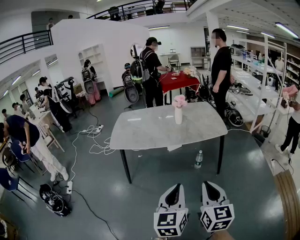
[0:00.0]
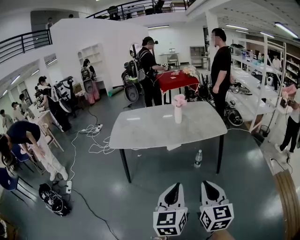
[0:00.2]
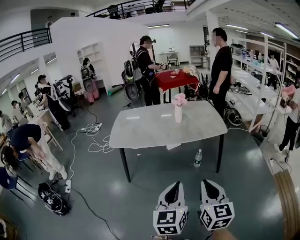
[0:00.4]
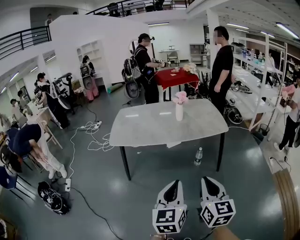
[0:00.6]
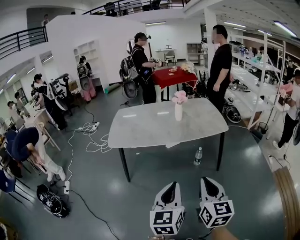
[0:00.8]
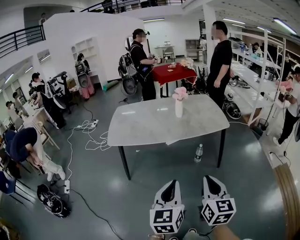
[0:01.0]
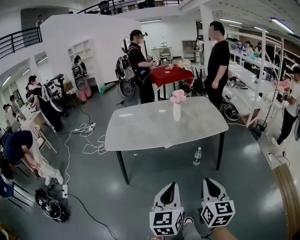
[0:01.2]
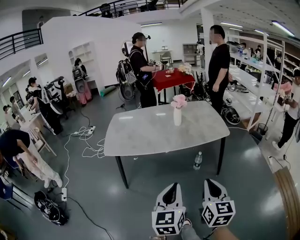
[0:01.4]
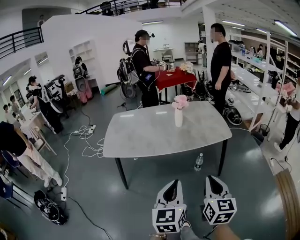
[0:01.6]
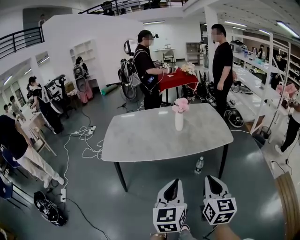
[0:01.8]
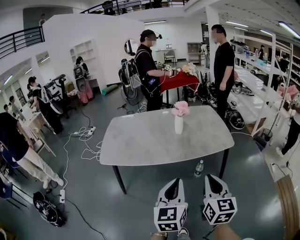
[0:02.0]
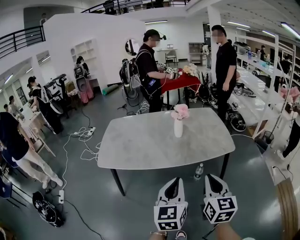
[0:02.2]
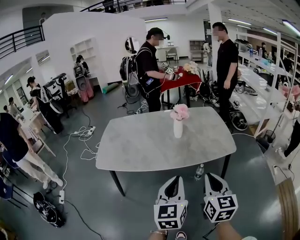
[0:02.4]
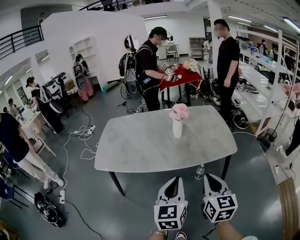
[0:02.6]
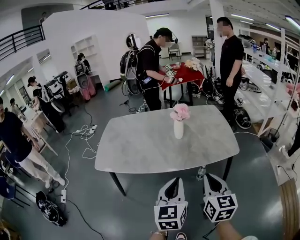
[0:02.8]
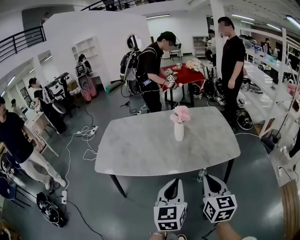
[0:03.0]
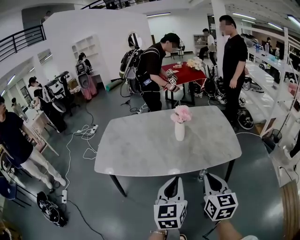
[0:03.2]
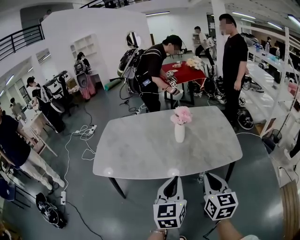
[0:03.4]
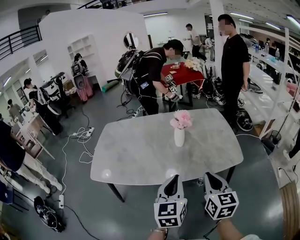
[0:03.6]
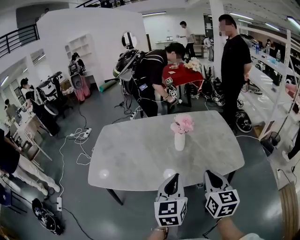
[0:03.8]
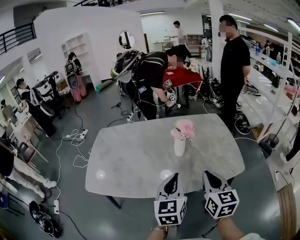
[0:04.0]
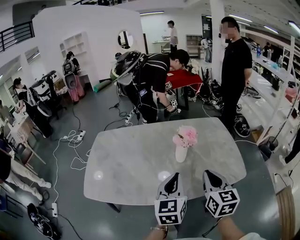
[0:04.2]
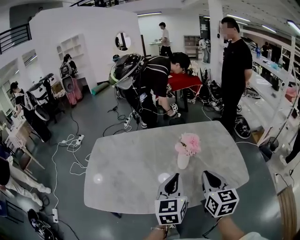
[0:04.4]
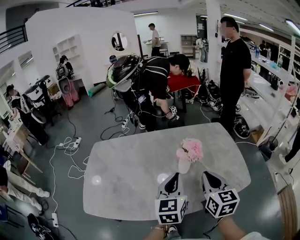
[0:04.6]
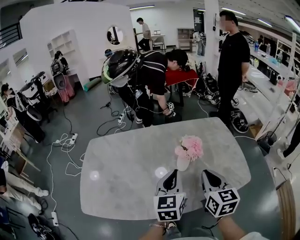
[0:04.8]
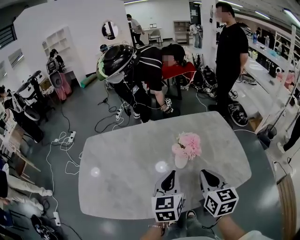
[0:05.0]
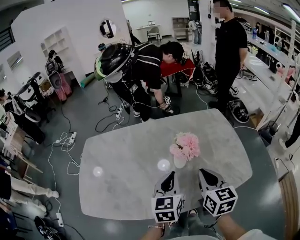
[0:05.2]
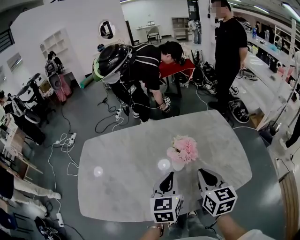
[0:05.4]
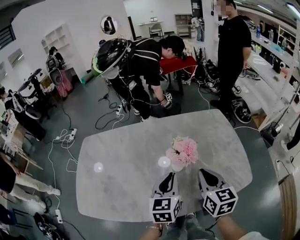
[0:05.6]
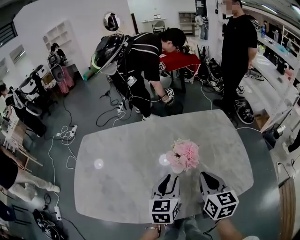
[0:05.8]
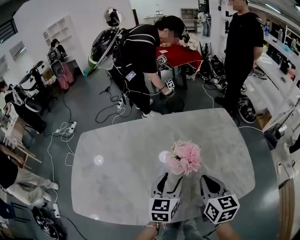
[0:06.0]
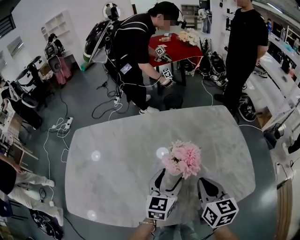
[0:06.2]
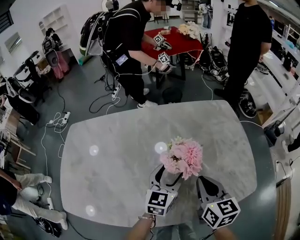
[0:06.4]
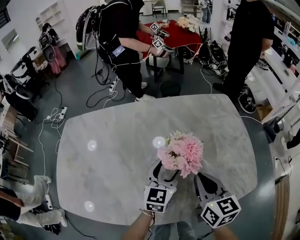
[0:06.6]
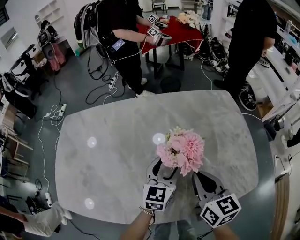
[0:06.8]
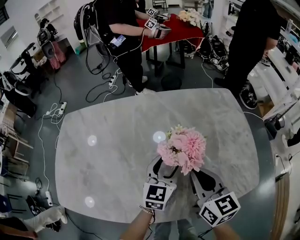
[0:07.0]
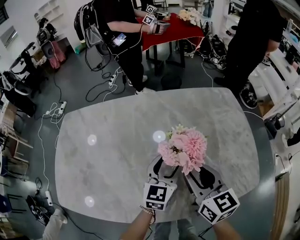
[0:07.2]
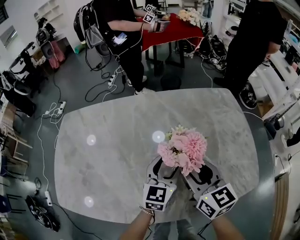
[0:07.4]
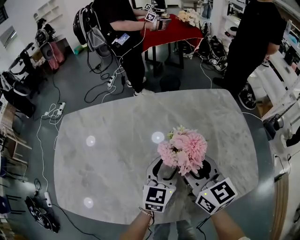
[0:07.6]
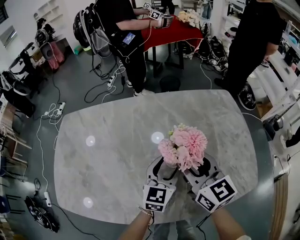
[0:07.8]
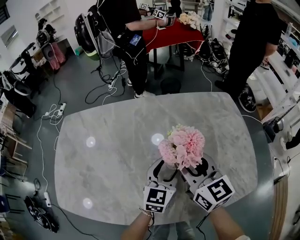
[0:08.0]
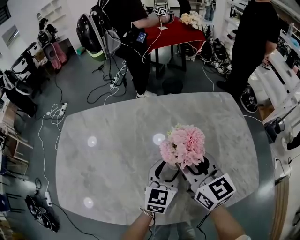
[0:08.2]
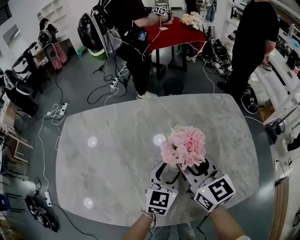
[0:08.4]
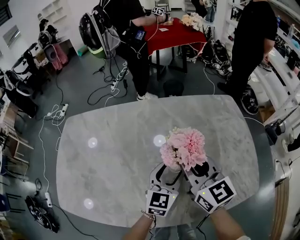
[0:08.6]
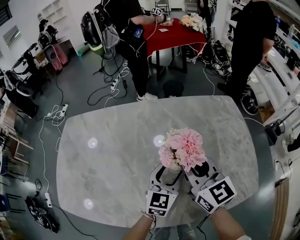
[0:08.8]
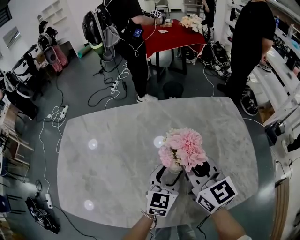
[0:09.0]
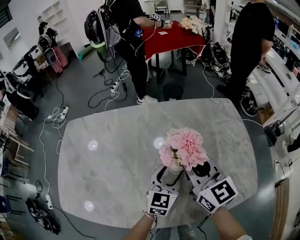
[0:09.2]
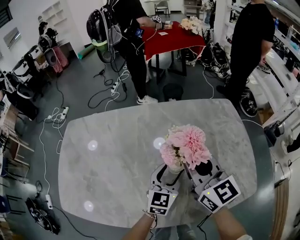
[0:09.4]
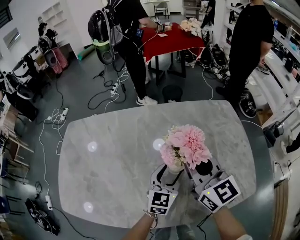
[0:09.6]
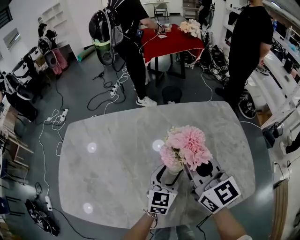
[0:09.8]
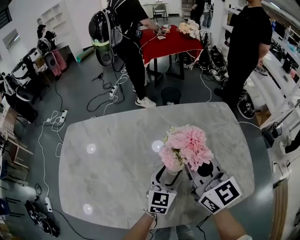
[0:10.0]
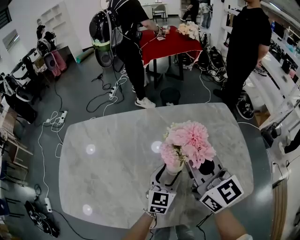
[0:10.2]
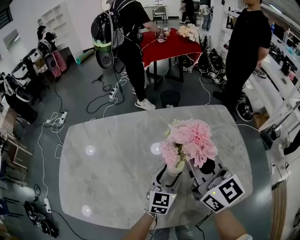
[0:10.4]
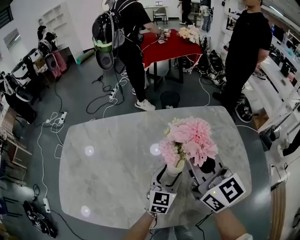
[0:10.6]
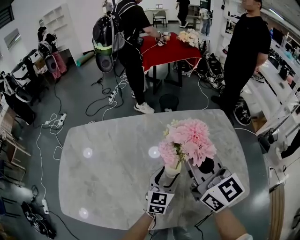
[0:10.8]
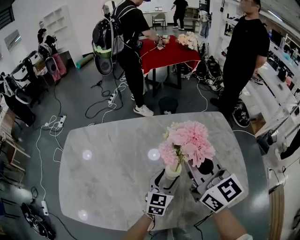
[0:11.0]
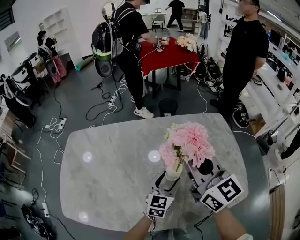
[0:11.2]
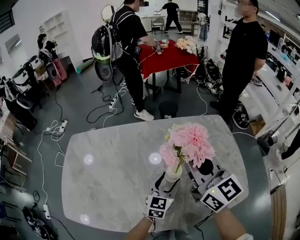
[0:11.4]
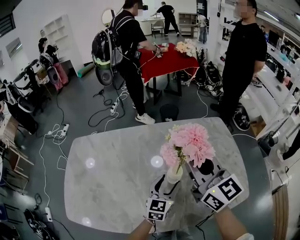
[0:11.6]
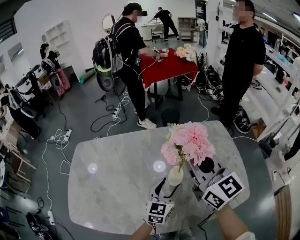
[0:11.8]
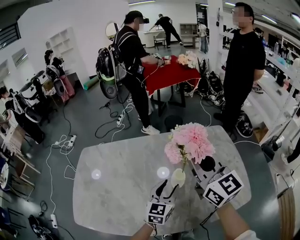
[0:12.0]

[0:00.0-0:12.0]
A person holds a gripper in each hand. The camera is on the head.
0:00.0 to 0:01.6: Both grippers travel together forward, about 15 cm.
0:01.6 to 0:03.0: The two grippers go some 20 cm forward.
0:03.0 to 0:04.4: Both grippers move forward, approximately 25 cm.
0:04.4 to 0:06.0: The right gripper heads forward and downward, covering some 15 cm. Meanwhile the left gripper is displaced downward and forward by about 20 cm, and opens its fingers.
0:06.0 to 0:07.6: The left gripper is displaced forward and downward by about 10 cm; the right gripper goes about 10 cm forward and to the left, rotates some 20 degrees, and opens.
0:07.6 to 0:09.0: The right gripper closes its fingers.
0:09.0 to 0:10.4: The right gripper goes about 10 cm upward.
0:10.4 to 0:12.0: The two grippers go some 5 cm upward.

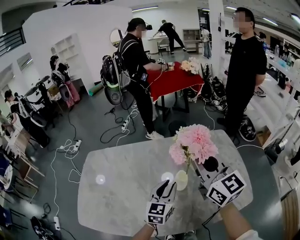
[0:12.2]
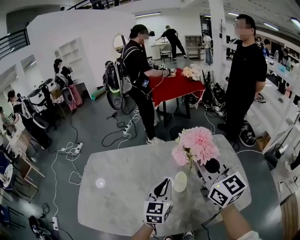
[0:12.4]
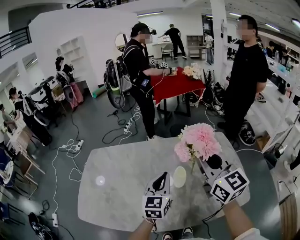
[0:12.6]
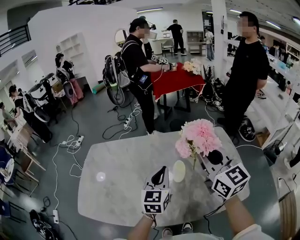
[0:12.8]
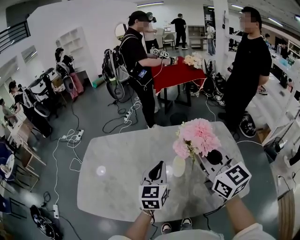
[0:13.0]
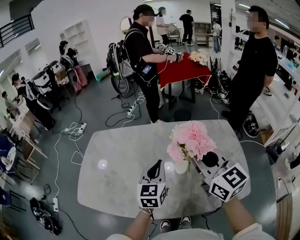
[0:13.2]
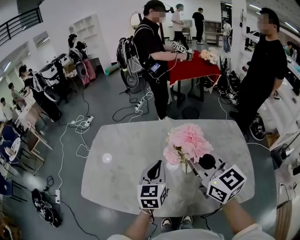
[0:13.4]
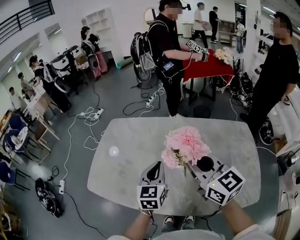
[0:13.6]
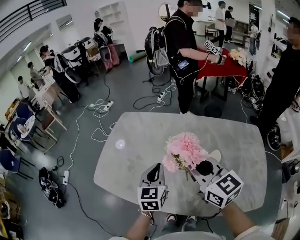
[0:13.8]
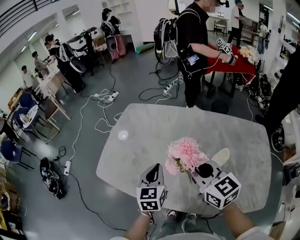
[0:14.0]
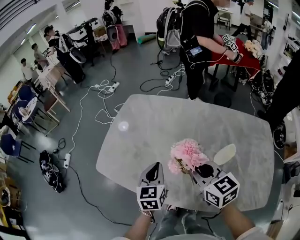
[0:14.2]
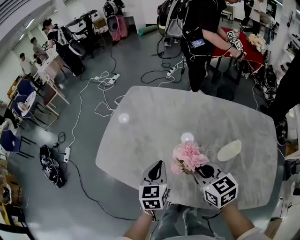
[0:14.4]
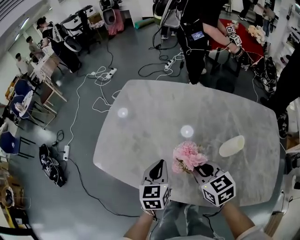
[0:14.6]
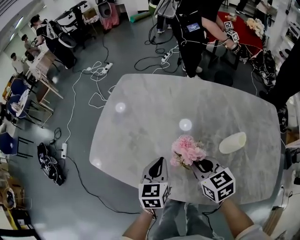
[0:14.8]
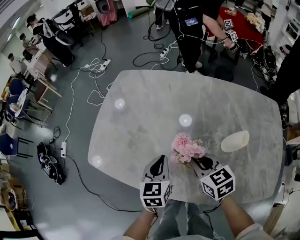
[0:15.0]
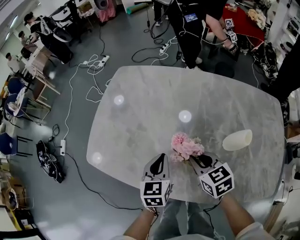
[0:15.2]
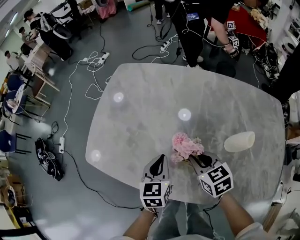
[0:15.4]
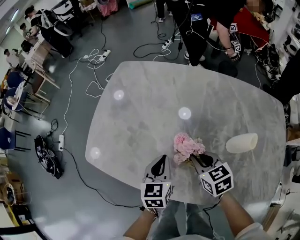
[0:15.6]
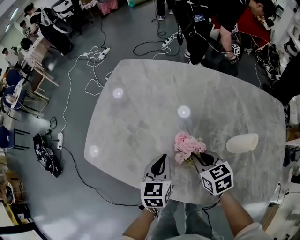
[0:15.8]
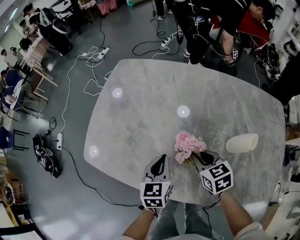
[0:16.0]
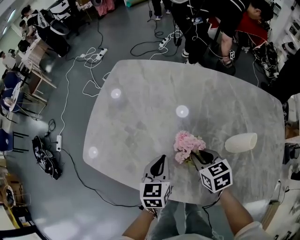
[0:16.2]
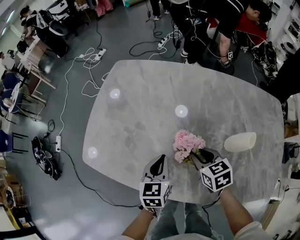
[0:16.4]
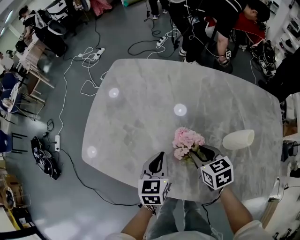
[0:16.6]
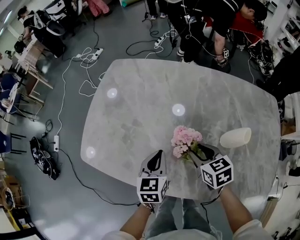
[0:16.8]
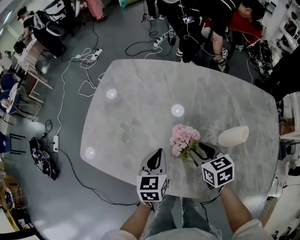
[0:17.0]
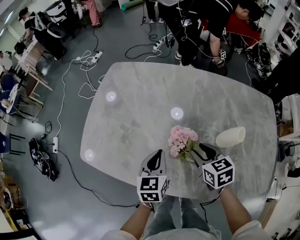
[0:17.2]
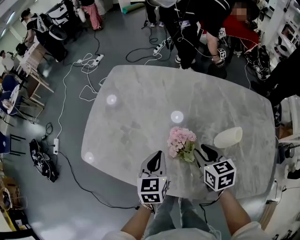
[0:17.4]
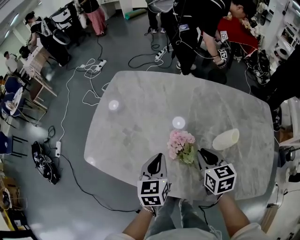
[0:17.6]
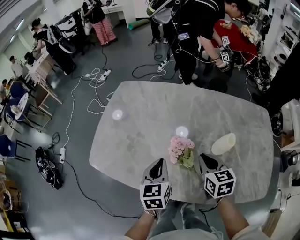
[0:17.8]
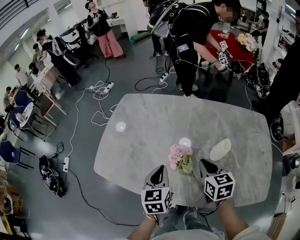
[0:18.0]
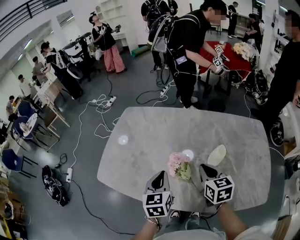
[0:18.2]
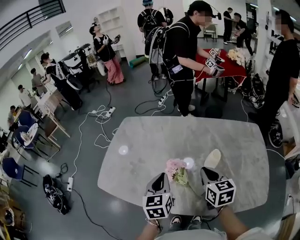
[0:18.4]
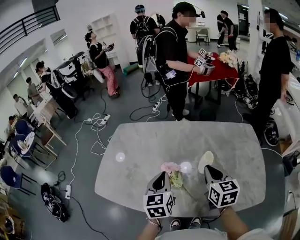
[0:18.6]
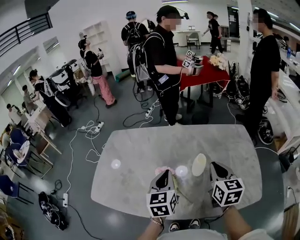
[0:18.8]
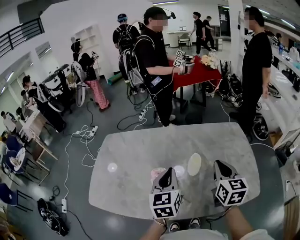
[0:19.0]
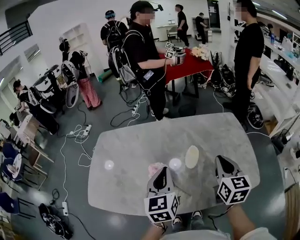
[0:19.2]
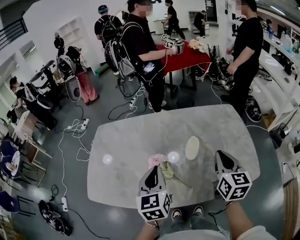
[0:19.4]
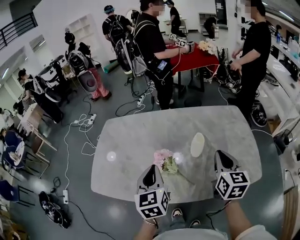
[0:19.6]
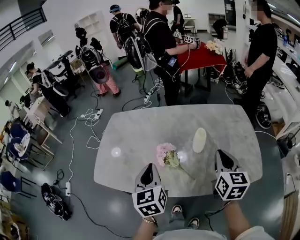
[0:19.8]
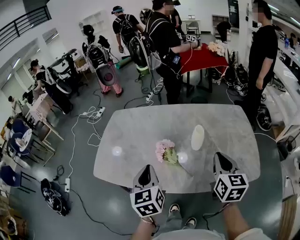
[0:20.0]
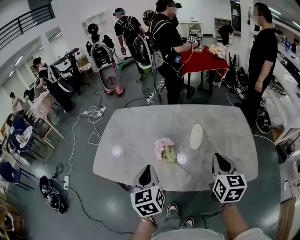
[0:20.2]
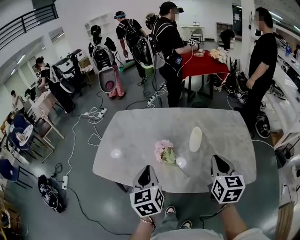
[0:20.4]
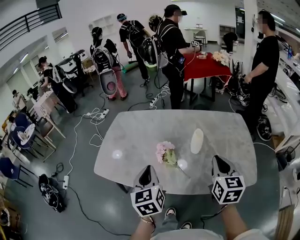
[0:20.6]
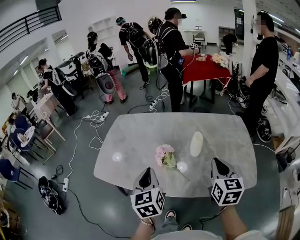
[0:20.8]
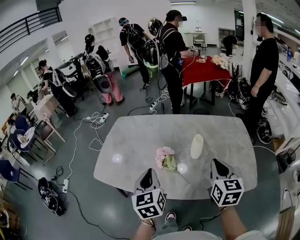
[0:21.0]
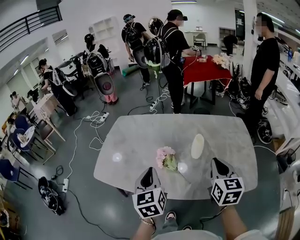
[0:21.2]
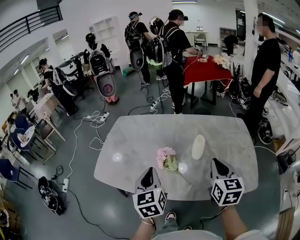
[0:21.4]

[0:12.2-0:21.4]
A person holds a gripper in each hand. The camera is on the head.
0:12.2 to 0:13.8: The right gripper moves roughly 20 cm, and swivels about 30 degrees. Meanwhile the left gripper moves about 20 cm, changes its angle by about 30 degrees, and closes up.
0:13.8 to 0:15.2: The left gripper moves downward, roughly 15 cm. Meanwhile the right gripper shifts about 25 cm downward, and tips its fingers downward by approximately 30 degrees.
0:15.2 to 0:16.8: The right gripper opens up.
0:16.8 to 0:18.4: The left gripper is displaced upward by approximately 15 cm. The right gripper goes some 15 cm upward and to the right, turns by roughly 30 degrees, and closes its fingers.
0:18.4 to 0:19.8: The right gripper goes about 15 cm to the right, backward and upward, and changes its angle by roughly 30 degrees, while the left gripper goes about 10 cm backward and upward, and moves roughly 10 cm to the right and comes back.
0:19.8 to 0:21.4: The grippers make only small movements.

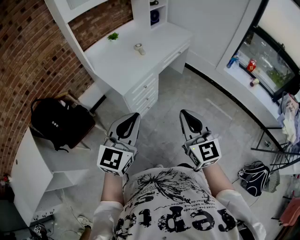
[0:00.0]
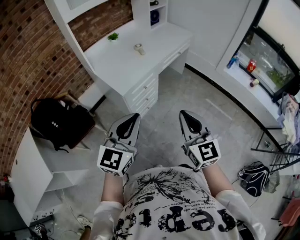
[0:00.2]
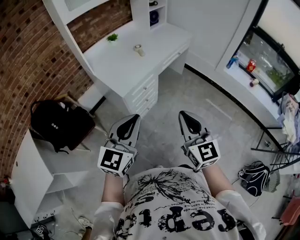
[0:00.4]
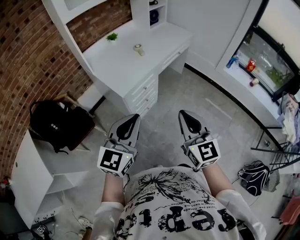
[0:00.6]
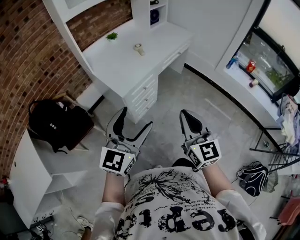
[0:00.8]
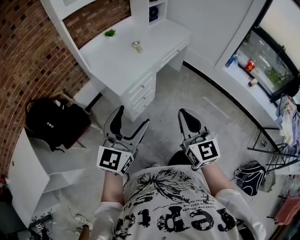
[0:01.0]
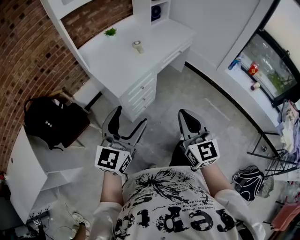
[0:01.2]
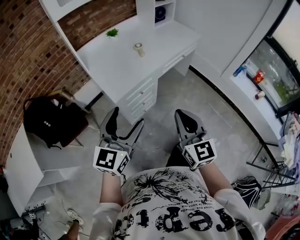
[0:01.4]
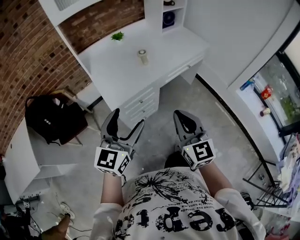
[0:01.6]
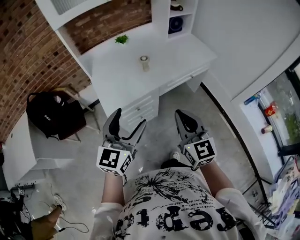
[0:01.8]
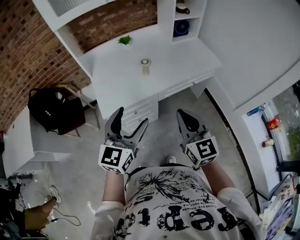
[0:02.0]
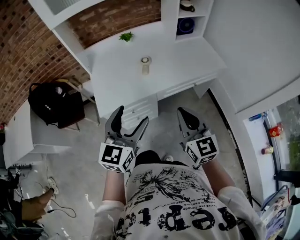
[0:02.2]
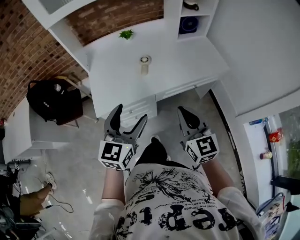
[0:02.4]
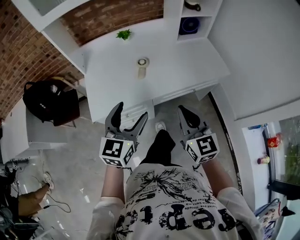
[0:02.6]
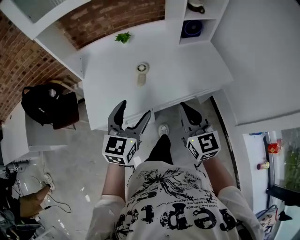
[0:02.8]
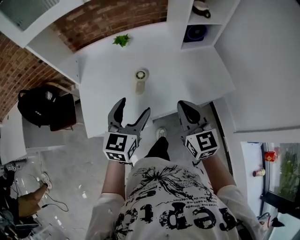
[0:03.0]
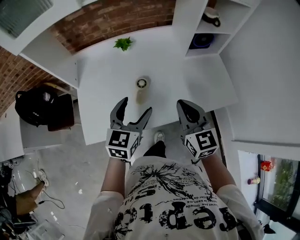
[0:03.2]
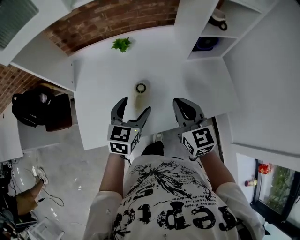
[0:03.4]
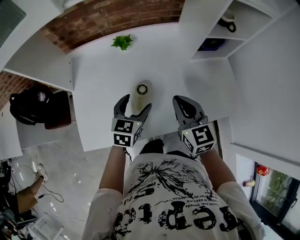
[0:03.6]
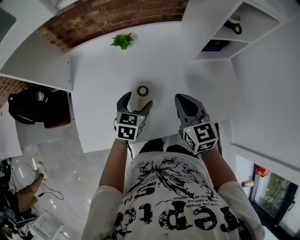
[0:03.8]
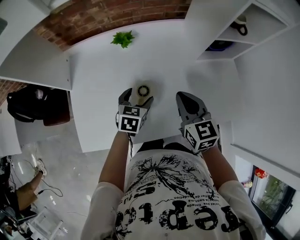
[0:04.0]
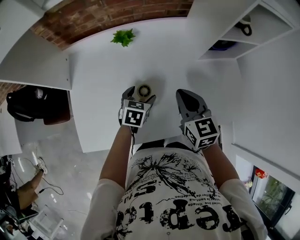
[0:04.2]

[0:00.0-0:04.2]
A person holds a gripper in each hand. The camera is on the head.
0:00.0 to 0:01.4: The grippers both shift forward by approximately 15 cm. The left gripper opens.
0:01.4 to 0:02.8: Both grippers are carried some 50 cm. The left gripper turns by roughly 30 degrees, while the right gripper turns by some 20 degrees.
0:02.8 to 0:04.2: The left gripper heads forward and downward, covering approximately 40 cm, and angles its fingers downward, by some 30 degrees. The right gripper shifts roughly 35 cm forward.
